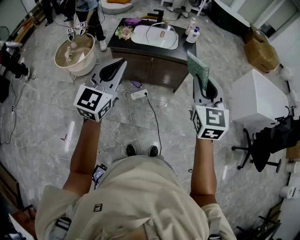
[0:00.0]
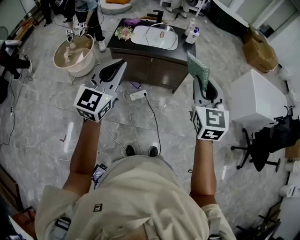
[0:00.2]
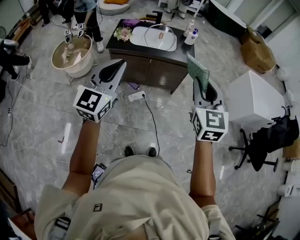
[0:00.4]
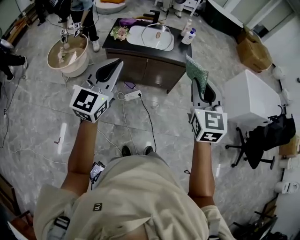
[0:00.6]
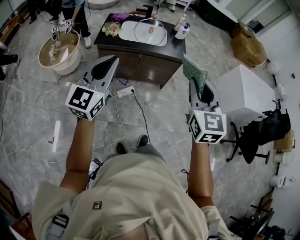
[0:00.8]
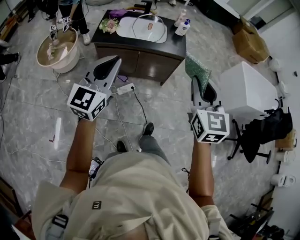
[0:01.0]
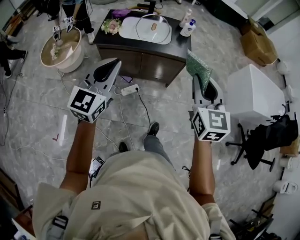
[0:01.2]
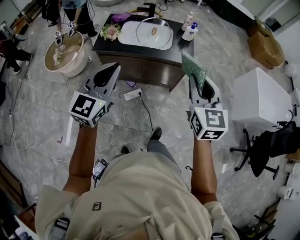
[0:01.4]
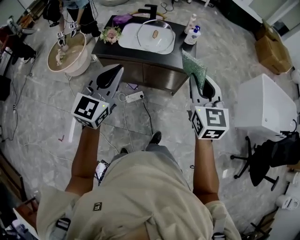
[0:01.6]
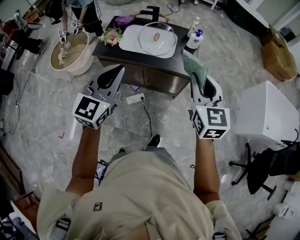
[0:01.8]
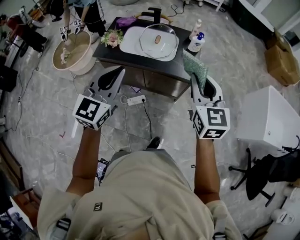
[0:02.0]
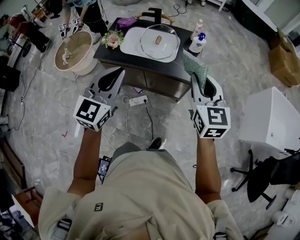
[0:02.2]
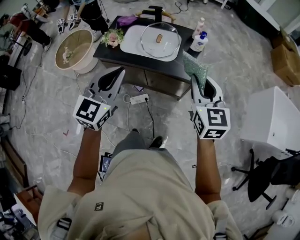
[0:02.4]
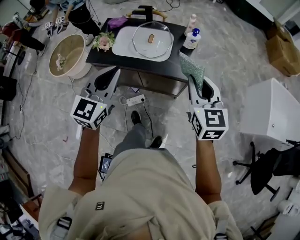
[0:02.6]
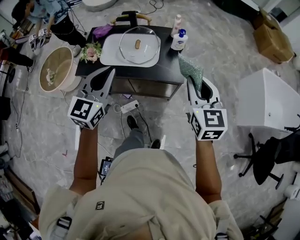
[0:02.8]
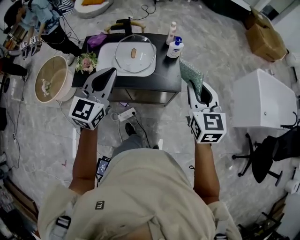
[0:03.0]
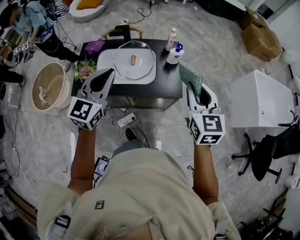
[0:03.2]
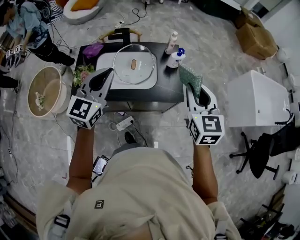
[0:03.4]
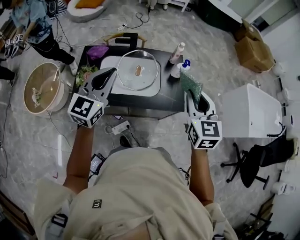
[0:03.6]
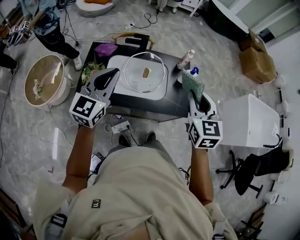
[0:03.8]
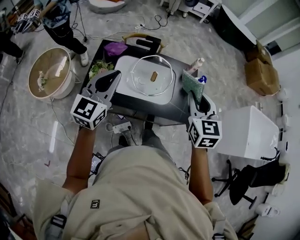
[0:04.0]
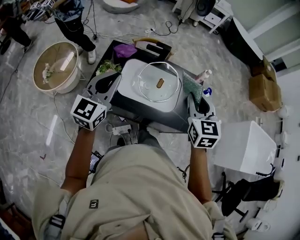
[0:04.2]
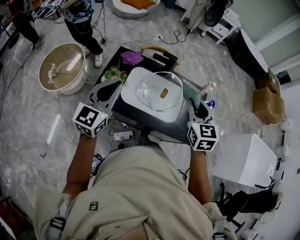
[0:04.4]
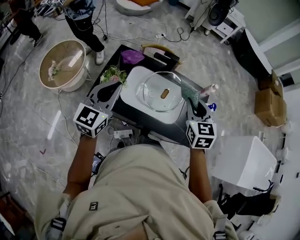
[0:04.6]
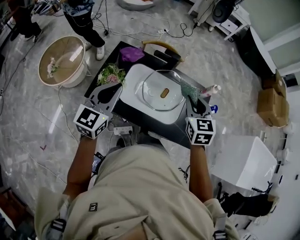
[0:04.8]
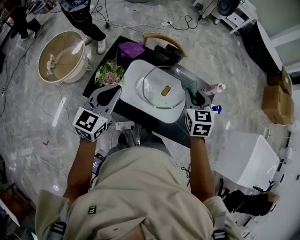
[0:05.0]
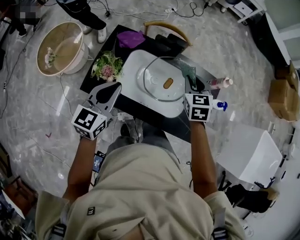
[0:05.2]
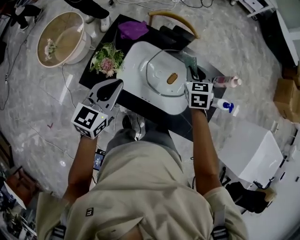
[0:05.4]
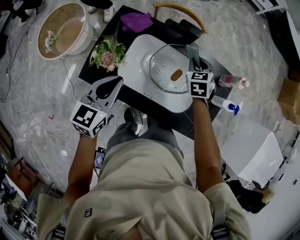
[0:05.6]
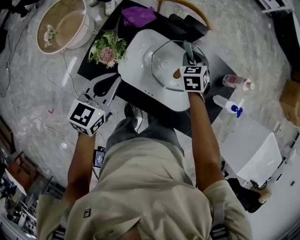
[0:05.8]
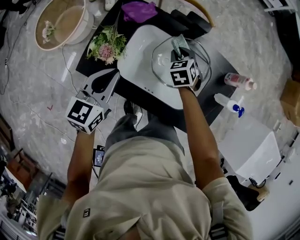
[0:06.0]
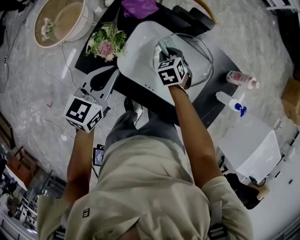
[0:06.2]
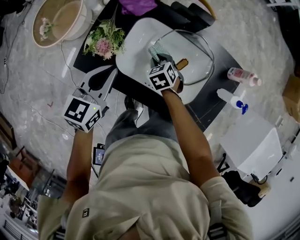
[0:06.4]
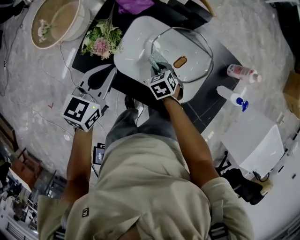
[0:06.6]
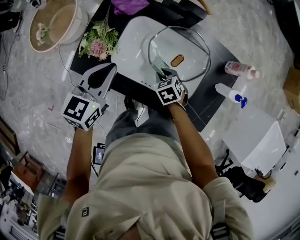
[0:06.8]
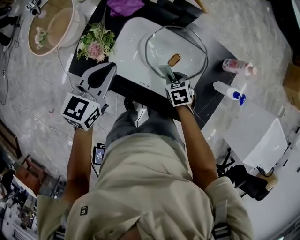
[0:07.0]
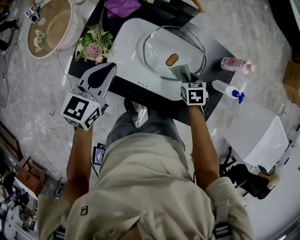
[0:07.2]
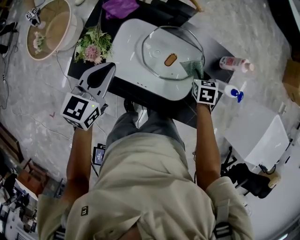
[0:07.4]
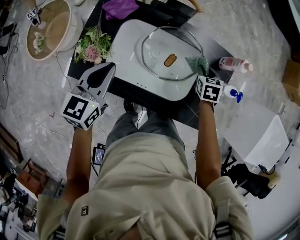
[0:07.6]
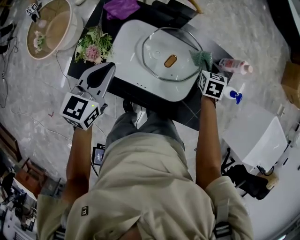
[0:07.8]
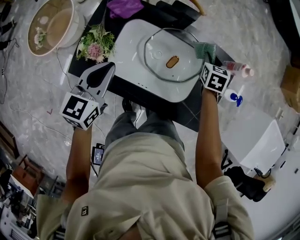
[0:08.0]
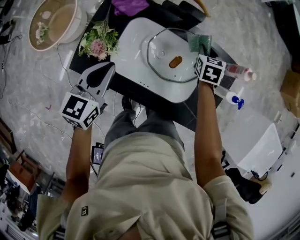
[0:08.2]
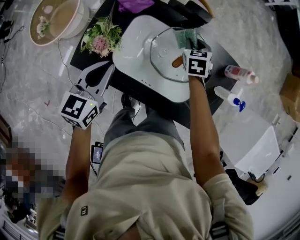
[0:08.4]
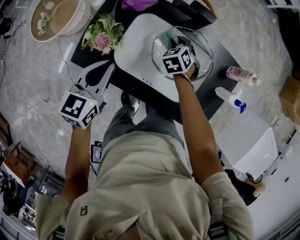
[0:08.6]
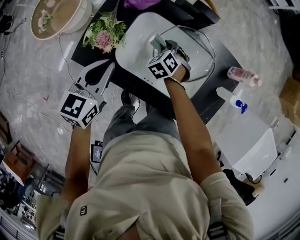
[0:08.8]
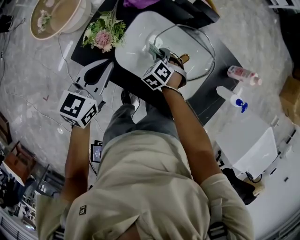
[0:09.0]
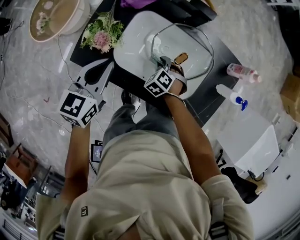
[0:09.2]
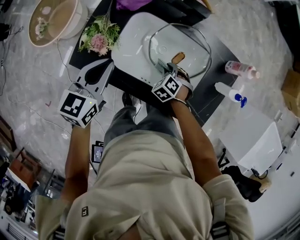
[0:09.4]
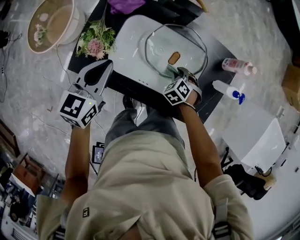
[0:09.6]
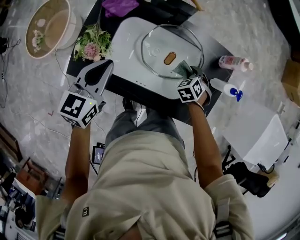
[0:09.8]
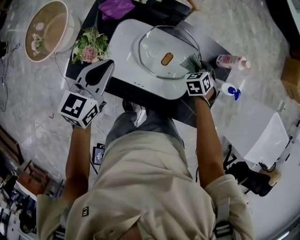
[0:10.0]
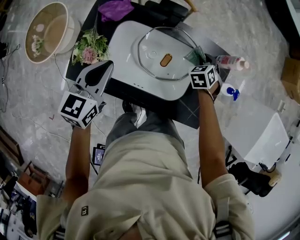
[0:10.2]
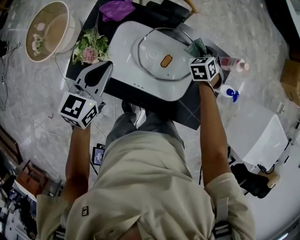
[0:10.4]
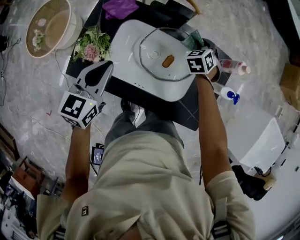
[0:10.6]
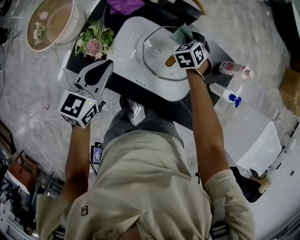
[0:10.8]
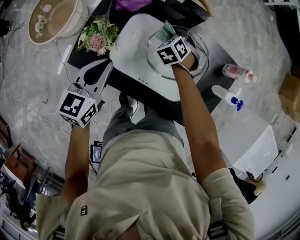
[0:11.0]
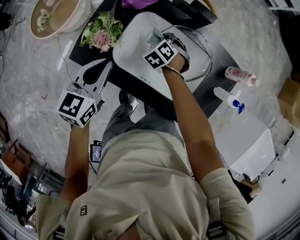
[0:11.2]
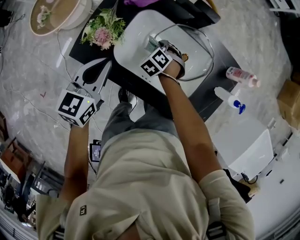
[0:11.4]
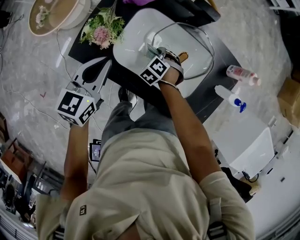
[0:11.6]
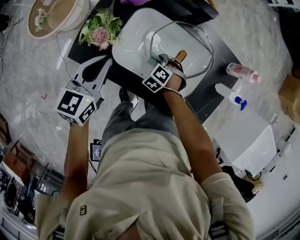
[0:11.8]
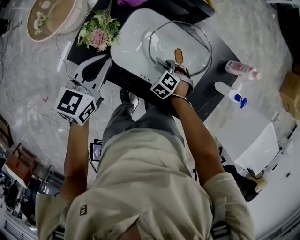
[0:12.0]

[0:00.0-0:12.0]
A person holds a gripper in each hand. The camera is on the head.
0:00.0 to 0:01.6: Both grippers move forward, about 25 cm.
0:01.6 to 0:03.0: The right gripper is displaced forward and to the right by about 20 cm, while the left gripper is displaced forward by roughly 20 cm.
0:03.0 to 0:04.4: The right gripper is displaced to the left and forward by about 30 cm. The left gripper goes approximately 25 cm to the left.
0:04.4 to 0:06.0: The right gripper heads downward and forward, covering roughly 40 cm, and tilts its fingers some 30 degrees downward. Meanwhile the left gripper is displaced downward and forward by some 25 cm, and changes its angle by approximately 30 degrees.
0:06.0 to 0:07.6: The right gripper reaches some 10 cm downward, then returns, and changes its angle by approximately 30 degrees.
0:07.6 to 0:09.0: The right gripper heads to the left, covering roughly 25 cm, and twists approximately 50 degrees counterclockwise, seen from behind. Meanwhile the left gripper goes roughly 5 cm to the left.
0:09.0 to 0:10.4: The right gripper heads to the right and forward, covering roughly 30 cm, and swivels approximately 30 degrees. The left gripper shifts roughly 5 cm to the right and forward.
0:10.4 to 0:12.0: The left gripper changes place by roughly 5 cm. The right gripper heads backward, to the left and downward, covering some 25 cm, and changes its angle by roughly 40 degrees.

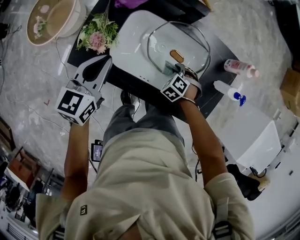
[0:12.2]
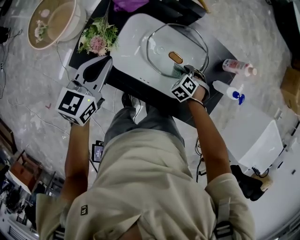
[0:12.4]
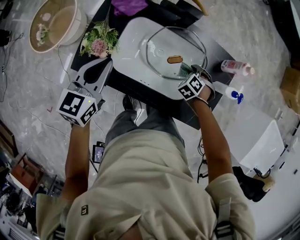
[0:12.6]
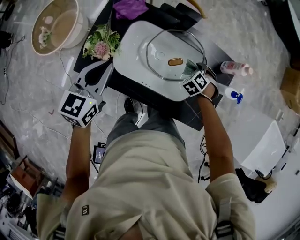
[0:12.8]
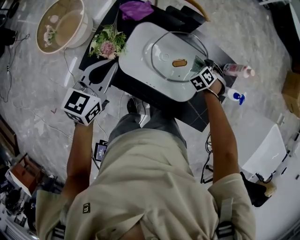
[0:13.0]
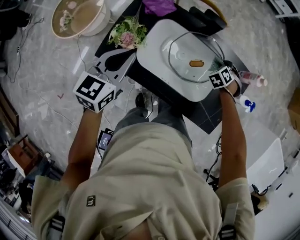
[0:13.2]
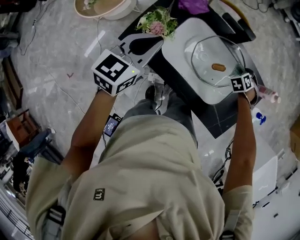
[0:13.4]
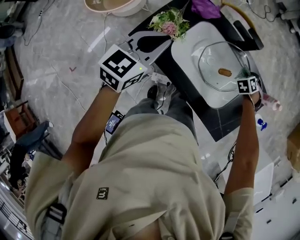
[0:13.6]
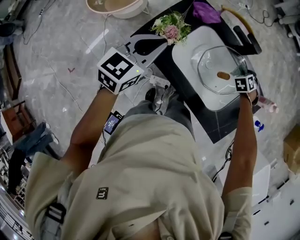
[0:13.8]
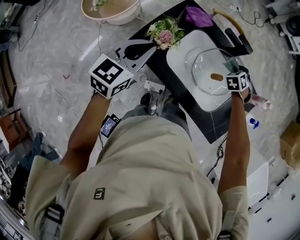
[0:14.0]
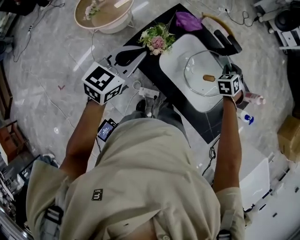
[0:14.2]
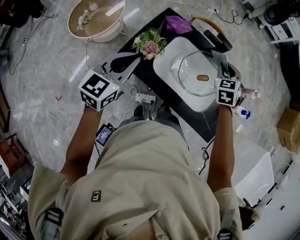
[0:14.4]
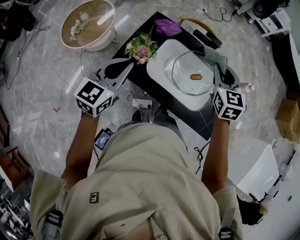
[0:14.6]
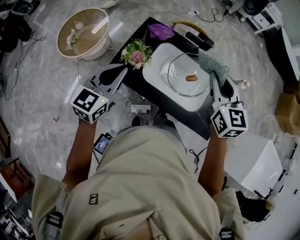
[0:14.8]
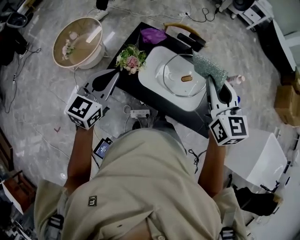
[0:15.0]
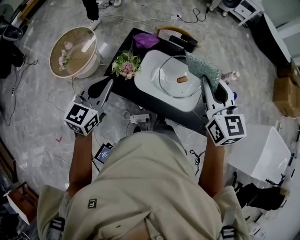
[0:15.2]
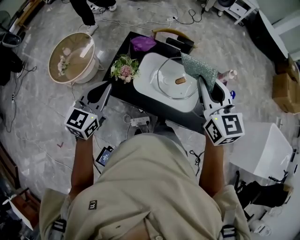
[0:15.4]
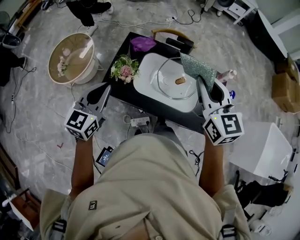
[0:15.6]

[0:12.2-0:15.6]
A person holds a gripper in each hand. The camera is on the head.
0:12.2 to 0:13.8: The right gripper travels forward and upward by approximately 20 cm, while the left gripper heads upward, backward and to the left, covering some 10 cm.
0:13.8 to 0:15.6: The right gripper travels upward and backward by about 40 cm, and tips its fingers upward by some 50 degrees, while the left gripper goes roughly 10 cm upward and backward.

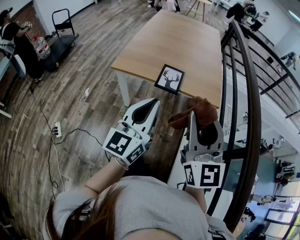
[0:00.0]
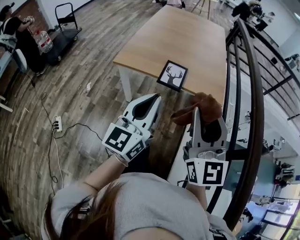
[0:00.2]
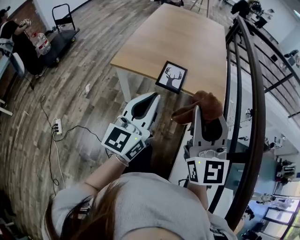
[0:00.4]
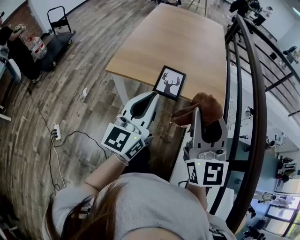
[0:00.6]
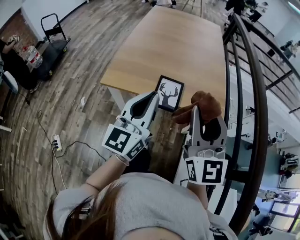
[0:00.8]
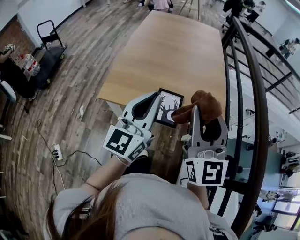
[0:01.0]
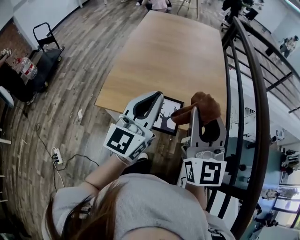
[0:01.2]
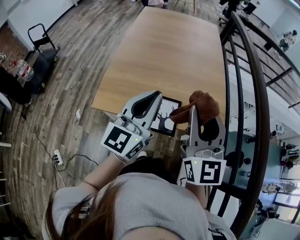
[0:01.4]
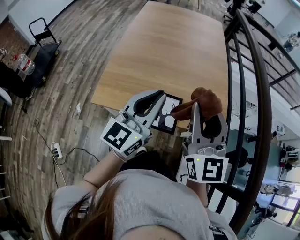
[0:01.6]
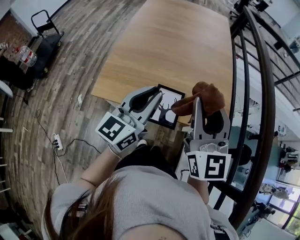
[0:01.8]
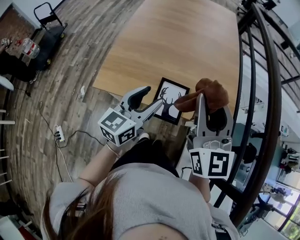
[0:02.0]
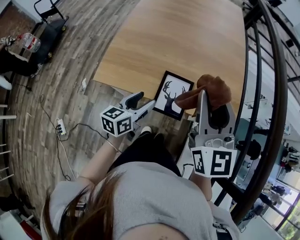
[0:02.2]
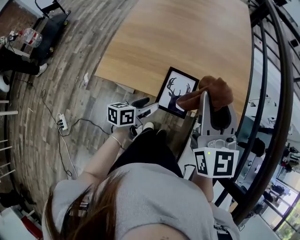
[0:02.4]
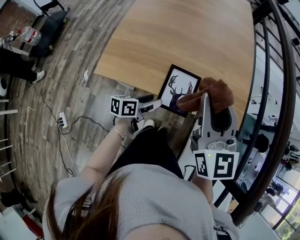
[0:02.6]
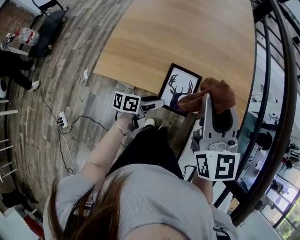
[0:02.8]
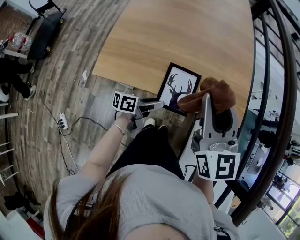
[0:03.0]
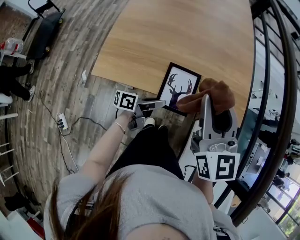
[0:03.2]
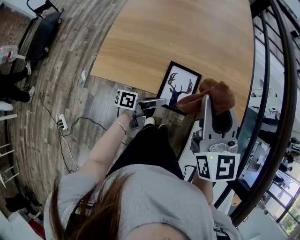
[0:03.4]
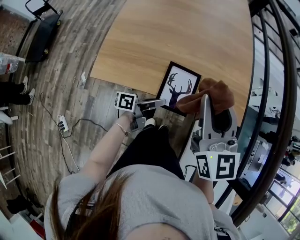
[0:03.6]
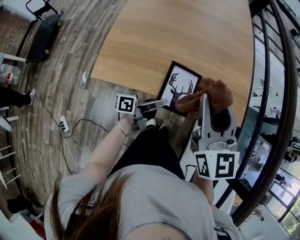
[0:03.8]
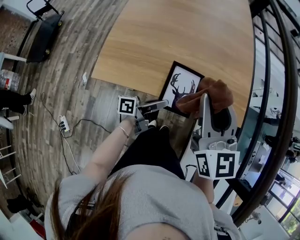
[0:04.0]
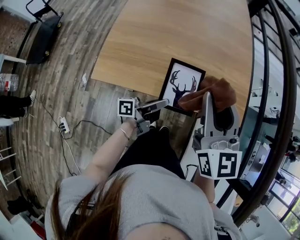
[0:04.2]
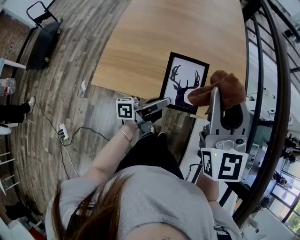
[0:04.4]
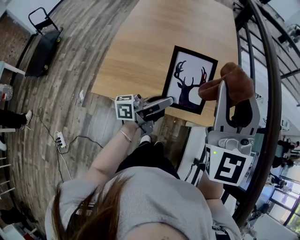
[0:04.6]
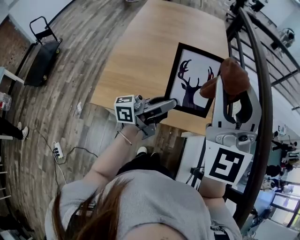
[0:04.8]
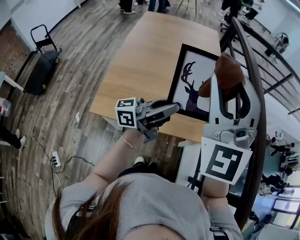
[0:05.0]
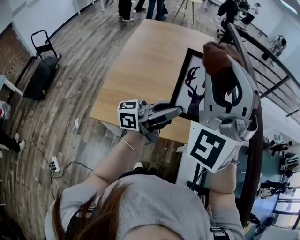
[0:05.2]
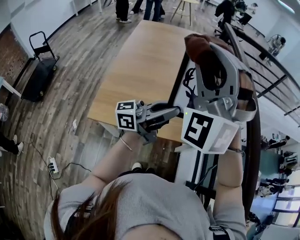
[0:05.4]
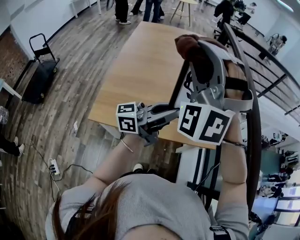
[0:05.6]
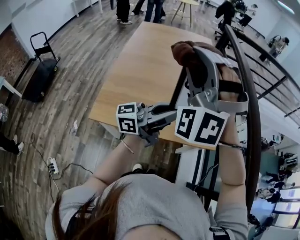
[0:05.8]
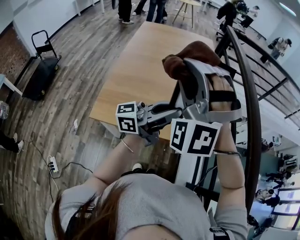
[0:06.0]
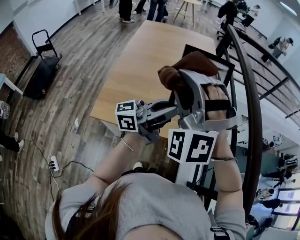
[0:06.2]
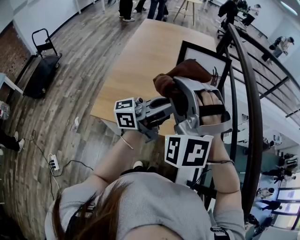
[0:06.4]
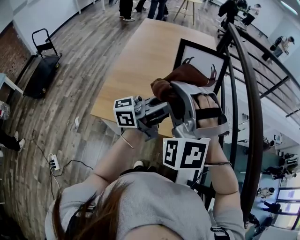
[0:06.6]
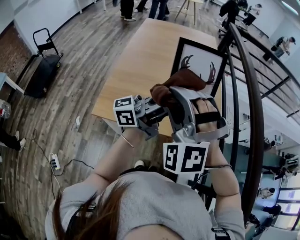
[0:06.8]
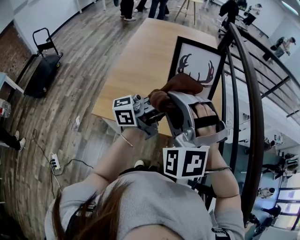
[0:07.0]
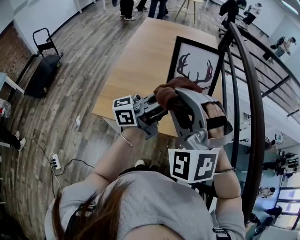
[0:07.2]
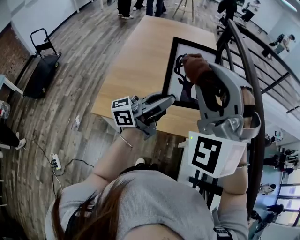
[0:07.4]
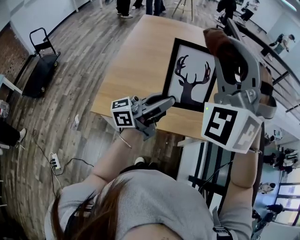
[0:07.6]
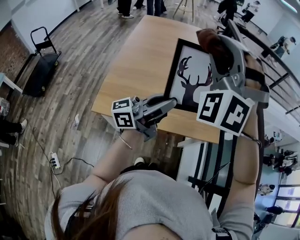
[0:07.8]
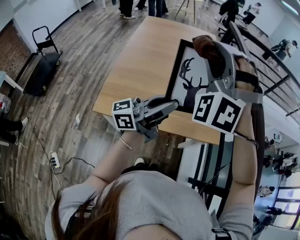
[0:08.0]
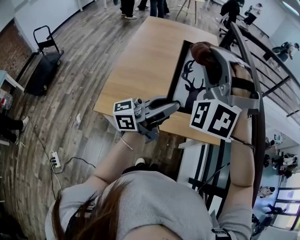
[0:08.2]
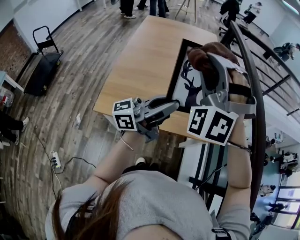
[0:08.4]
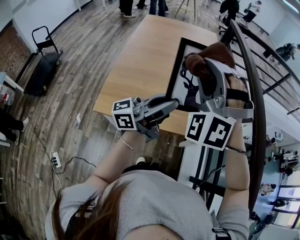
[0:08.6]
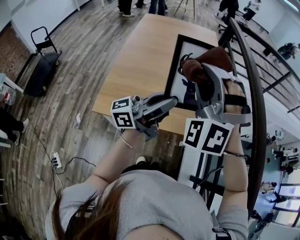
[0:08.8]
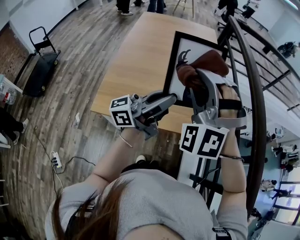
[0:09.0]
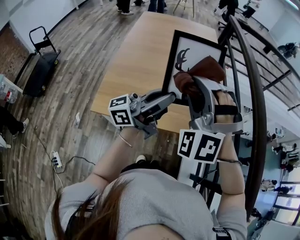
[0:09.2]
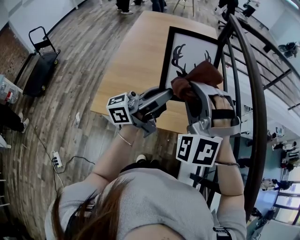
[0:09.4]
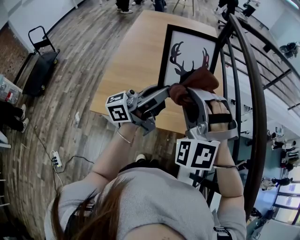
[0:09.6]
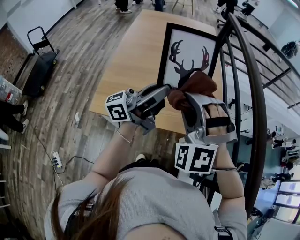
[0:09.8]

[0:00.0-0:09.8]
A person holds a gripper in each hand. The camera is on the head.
0:00.0 to 0:01.4: The two grippers go roughly 30 cm forward.
0:01.4 to 0:02.8: The left gripper is displaced downward by some 35 cm, angles its fingers downward, by some 30 degrees, and opens; the right gripper moves downward, some 10 cm.
0:02.8 to 0:04.2: The left gripper moves upward, some 5 cm, tips its fingers upward by some 30 degrees, and closes.
0:04.2 to 0:05.6: The two grippers go roughly 25 cm upward. The right gripper twists some 90 degrees counterclockwise, seen from behind, while the left gripper twists some 40 degrees clockwise, seen from behind.
0:05.6 to 0:07.0: The right gripper travels downward and backward by roughly 15 cm, and swivels some 30 degrees.
0:07.0 to 0:08.4: The right gripper goes roughly 15 cm forward and upward, and rotates roughly 20 degrees.
0:08.4 to 0:09.8: The right gripper goes approximately 15 cm downward and backward.
